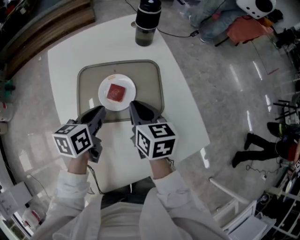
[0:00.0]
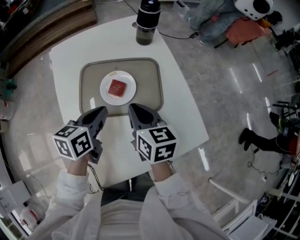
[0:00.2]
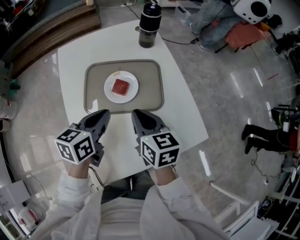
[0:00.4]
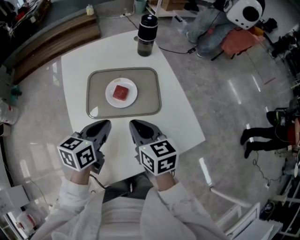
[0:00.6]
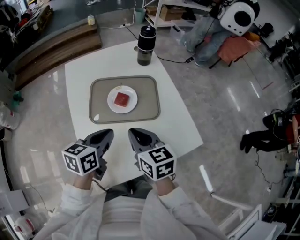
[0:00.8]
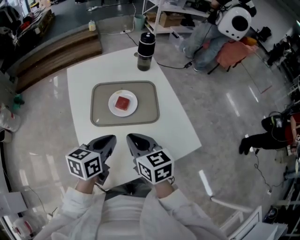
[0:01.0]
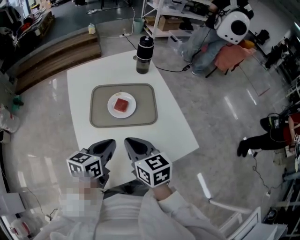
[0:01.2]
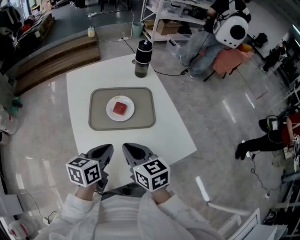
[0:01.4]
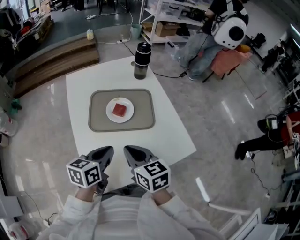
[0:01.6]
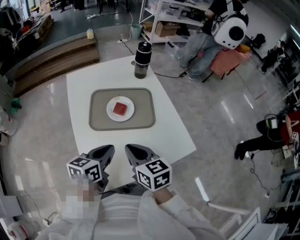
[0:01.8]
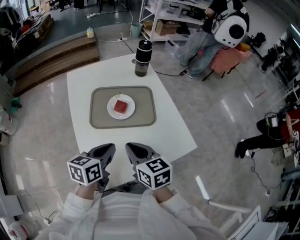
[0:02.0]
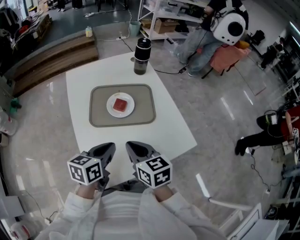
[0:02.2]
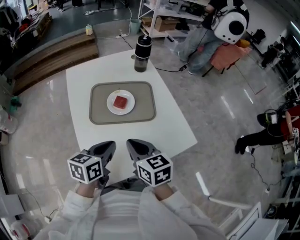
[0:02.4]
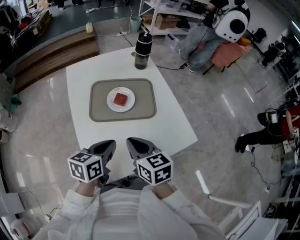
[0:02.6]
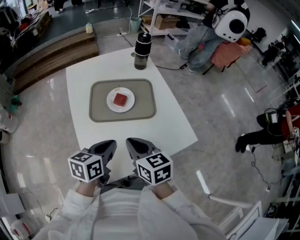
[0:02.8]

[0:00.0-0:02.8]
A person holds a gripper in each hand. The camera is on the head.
0:00.0 to 0:01.4: The right gripper travels backward and upward by approximately 20 cm. The left gripper shifts roughly 15 cm backward.
0:01.4 to 0:02.8: The grippers move only a little.

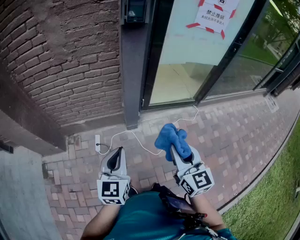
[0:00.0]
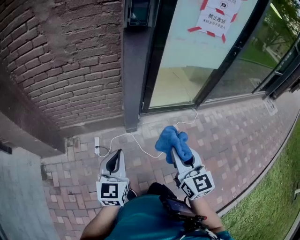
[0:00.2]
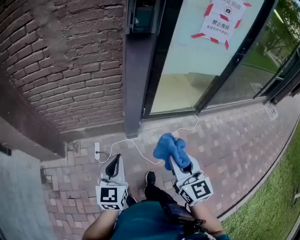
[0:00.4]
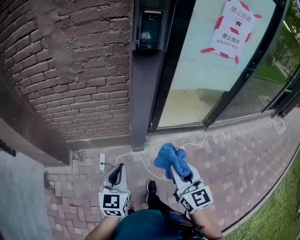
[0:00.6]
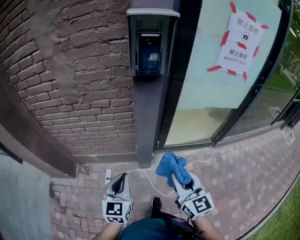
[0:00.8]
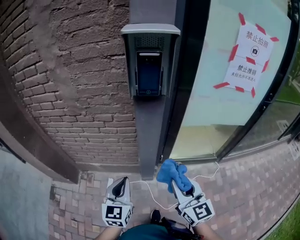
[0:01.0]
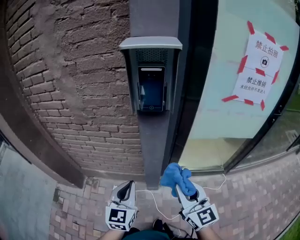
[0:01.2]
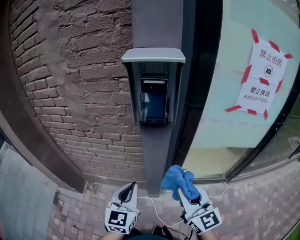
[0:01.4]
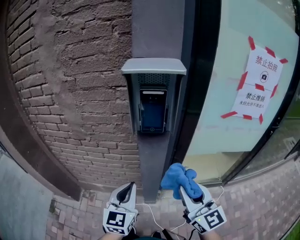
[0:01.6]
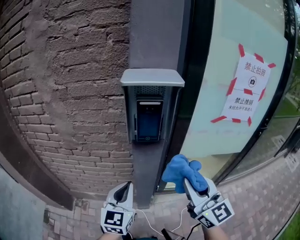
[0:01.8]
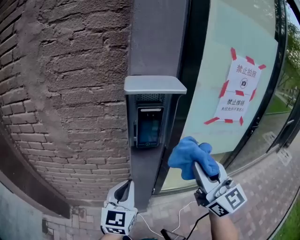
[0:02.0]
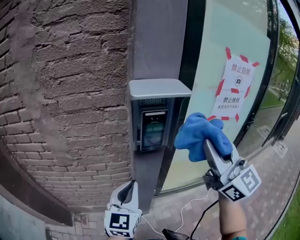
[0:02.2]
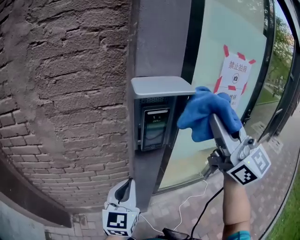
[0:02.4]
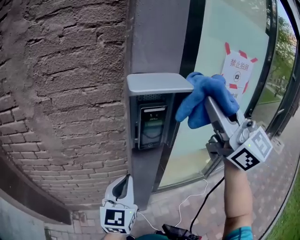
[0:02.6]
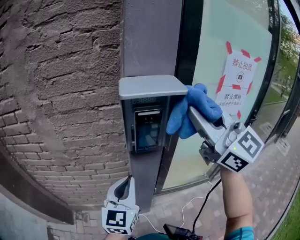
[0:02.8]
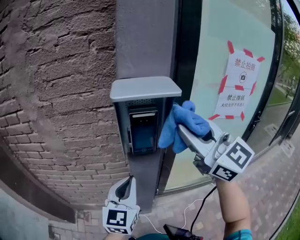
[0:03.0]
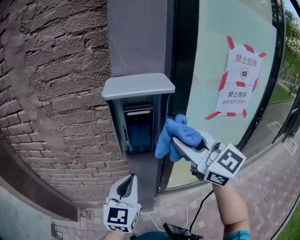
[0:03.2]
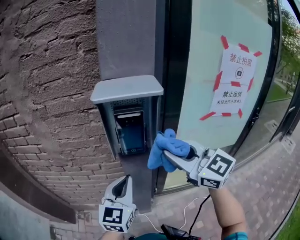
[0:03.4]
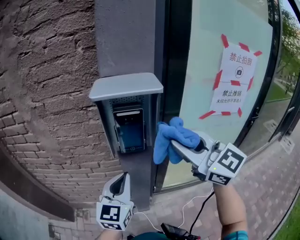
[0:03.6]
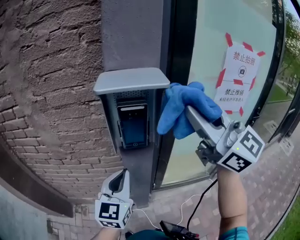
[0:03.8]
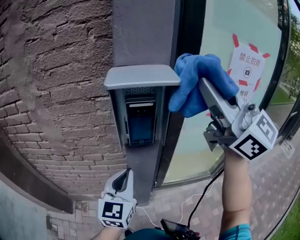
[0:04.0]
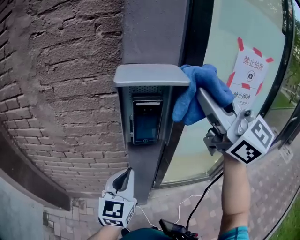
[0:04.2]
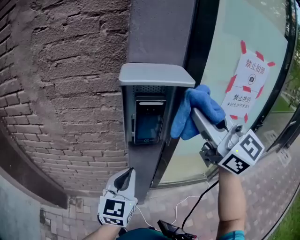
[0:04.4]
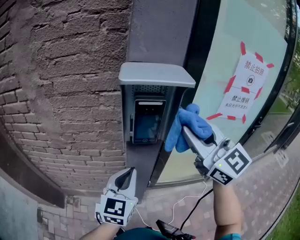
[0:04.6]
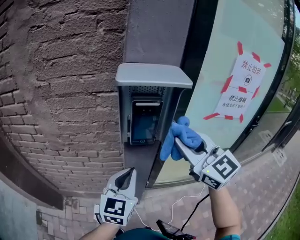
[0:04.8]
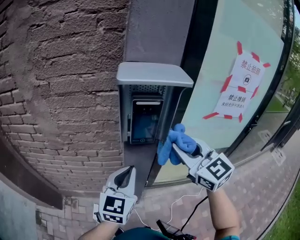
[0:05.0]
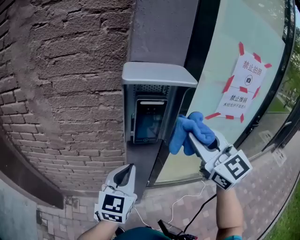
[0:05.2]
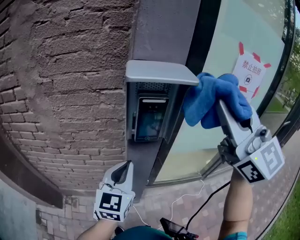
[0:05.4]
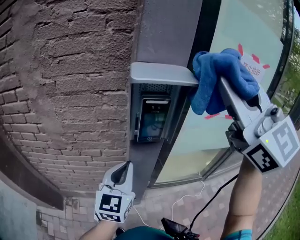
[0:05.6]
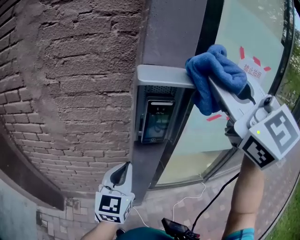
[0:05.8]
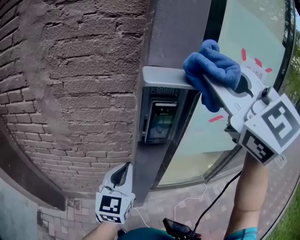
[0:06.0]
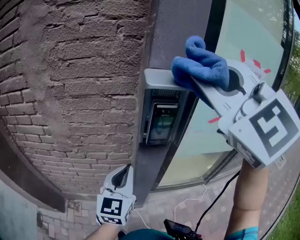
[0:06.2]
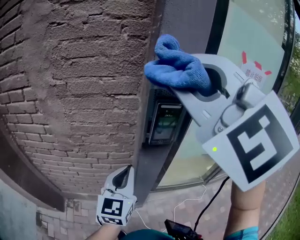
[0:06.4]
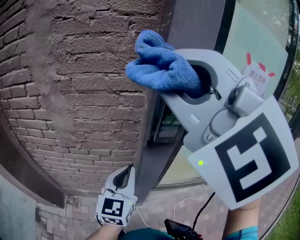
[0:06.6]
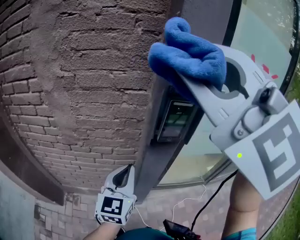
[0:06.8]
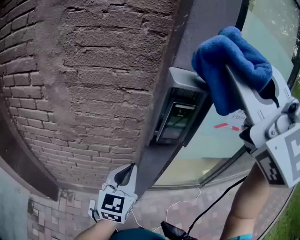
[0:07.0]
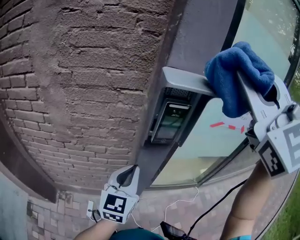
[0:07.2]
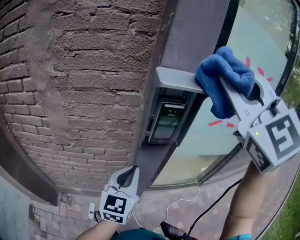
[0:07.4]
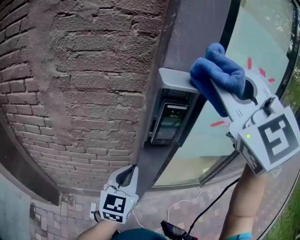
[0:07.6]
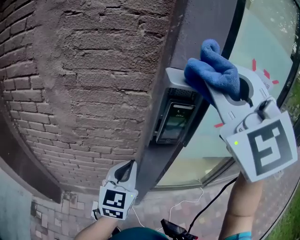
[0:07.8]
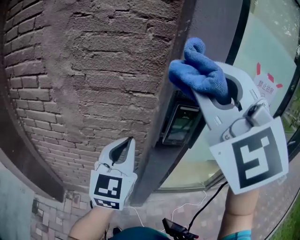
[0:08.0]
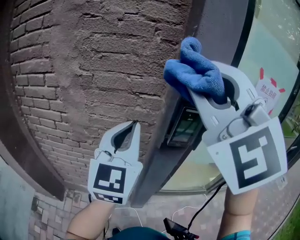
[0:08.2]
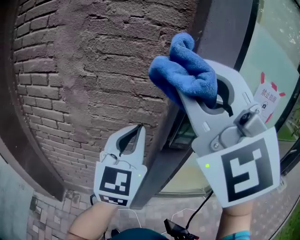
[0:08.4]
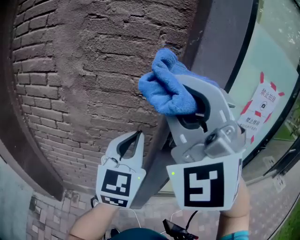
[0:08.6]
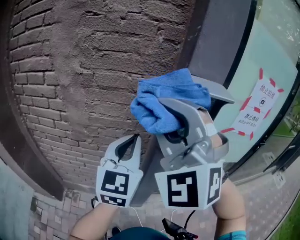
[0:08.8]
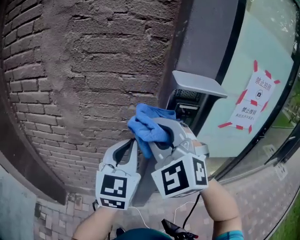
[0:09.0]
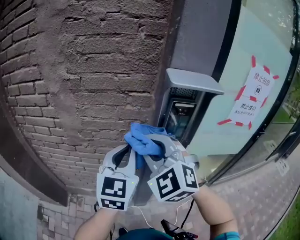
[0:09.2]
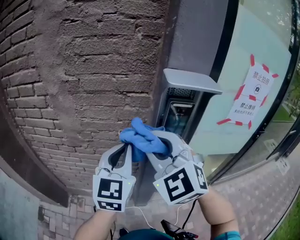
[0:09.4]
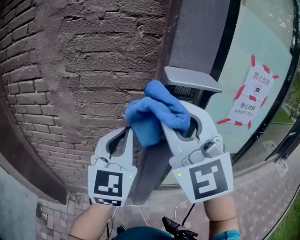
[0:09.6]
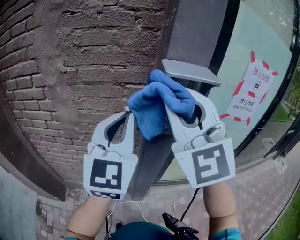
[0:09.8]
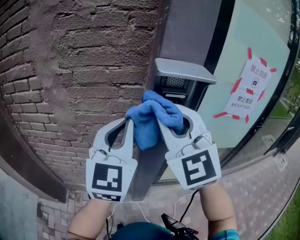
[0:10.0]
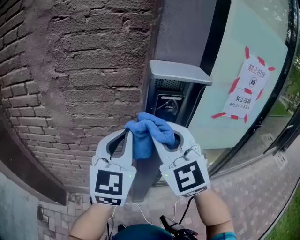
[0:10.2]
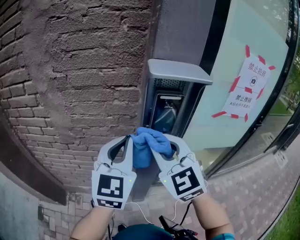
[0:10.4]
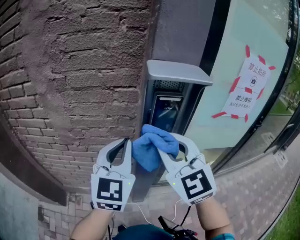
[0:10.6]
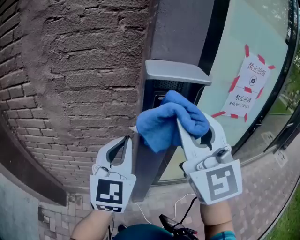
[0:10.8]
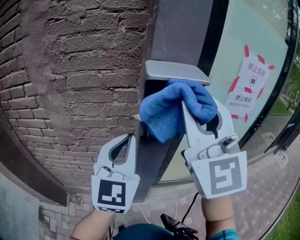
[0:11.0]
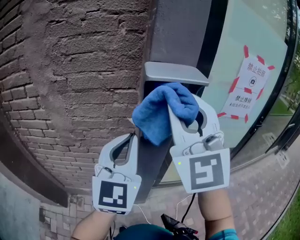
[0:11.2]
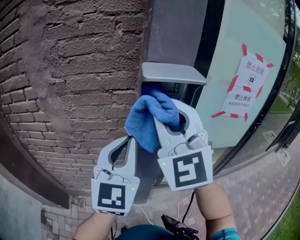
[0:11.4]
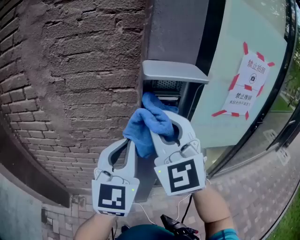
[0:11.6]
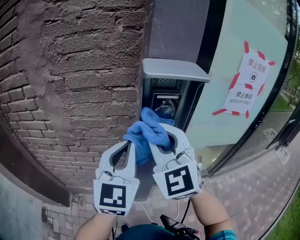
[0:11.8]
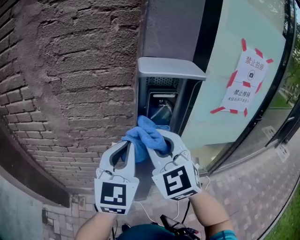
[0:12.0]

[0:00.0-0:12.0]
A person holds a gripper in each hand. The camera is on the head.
0:00.0 to 0:01.6: The grippers both shift forward by some 30 cm. The right gripper rotates roughly 20 degrees.
0:01.6 to 0:03.0: The right gripper travels upward and forward by roughly 25 cm; the left gripper is displaced upward and forward by roughly 10 cm.
0:03.0 to 0:04.4: The right gripper swings up and down, approximately 20 cm each way, with 2 reversals.
0:04.4 to 0:06.0: The left gripper moves about 5 cm; the right gripper heads upward and to the left, covering approximately 15 cm, and changes its angle by roughly 40 degrees.
0:06.0 to 0:07.6: The right gripper travels to the left and back again, about 15 cm each way.
0:07.6 to 0:09.0: The right gripper moves downward and to the left, about 20 cm; the left gripper shifts approximately 10 cm upward and to the left.
0:09.0 to 0:10.4: The left gripper reaches some 10 cm upward, then returns. The right gripper moves up and down over about 15 cm, changing direction 2 times, and turns by about 20 degrees.
0:10.4 to 0:12.0: The right gripper reaches some 20 cm upward, then returns.

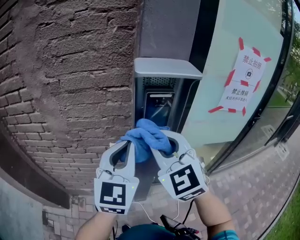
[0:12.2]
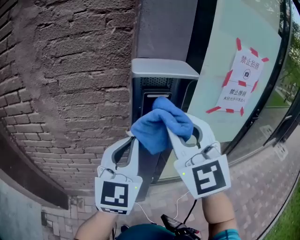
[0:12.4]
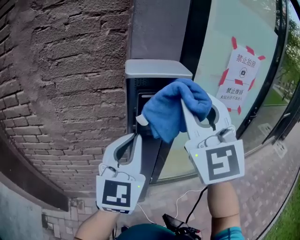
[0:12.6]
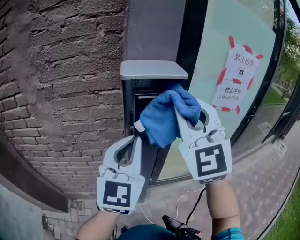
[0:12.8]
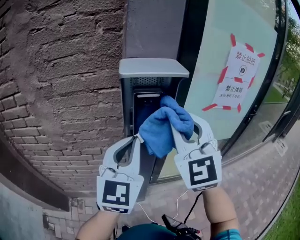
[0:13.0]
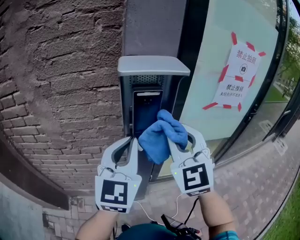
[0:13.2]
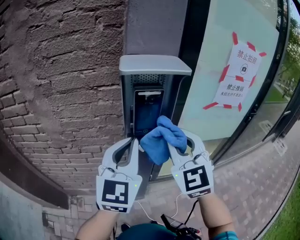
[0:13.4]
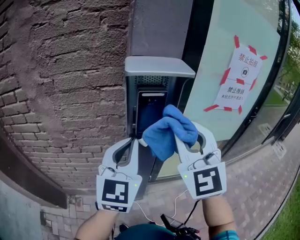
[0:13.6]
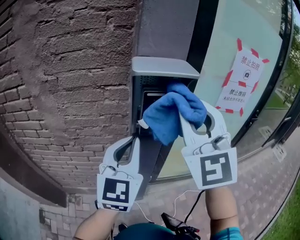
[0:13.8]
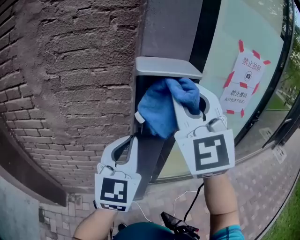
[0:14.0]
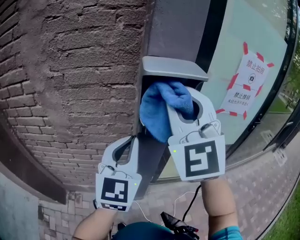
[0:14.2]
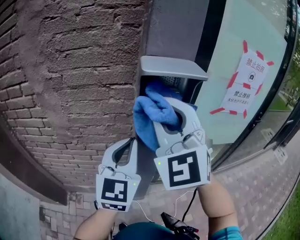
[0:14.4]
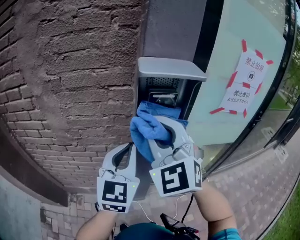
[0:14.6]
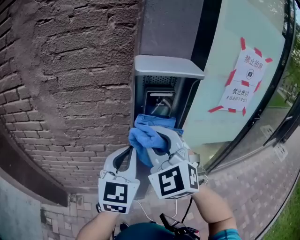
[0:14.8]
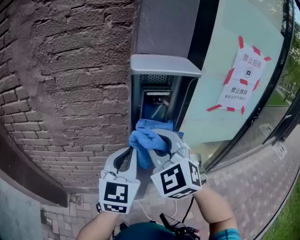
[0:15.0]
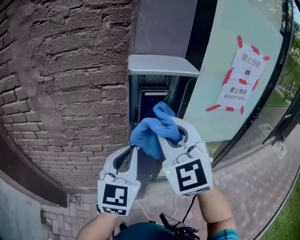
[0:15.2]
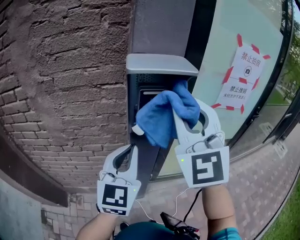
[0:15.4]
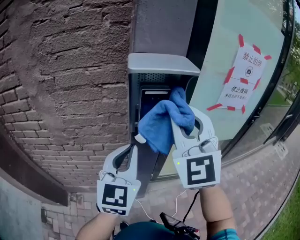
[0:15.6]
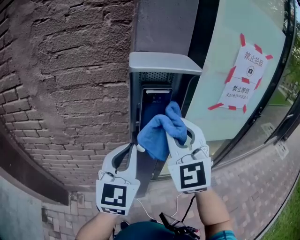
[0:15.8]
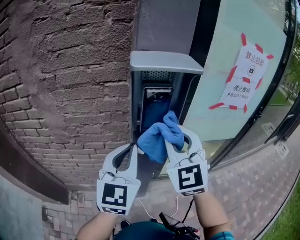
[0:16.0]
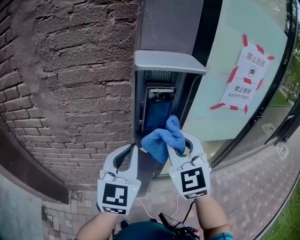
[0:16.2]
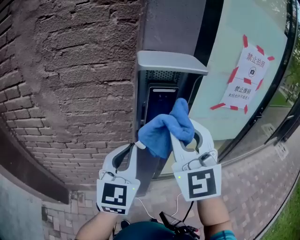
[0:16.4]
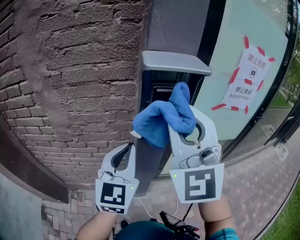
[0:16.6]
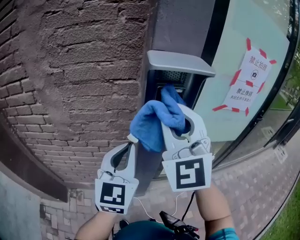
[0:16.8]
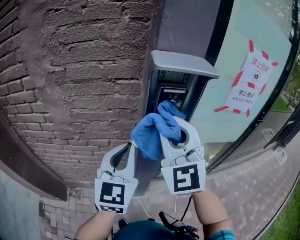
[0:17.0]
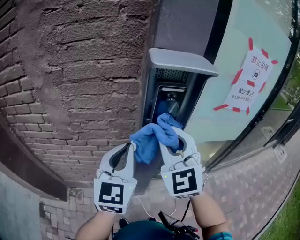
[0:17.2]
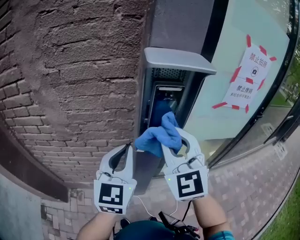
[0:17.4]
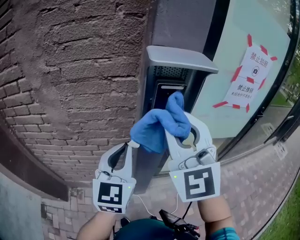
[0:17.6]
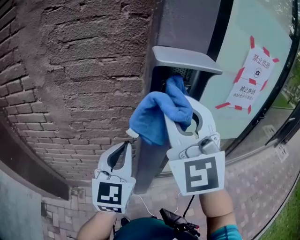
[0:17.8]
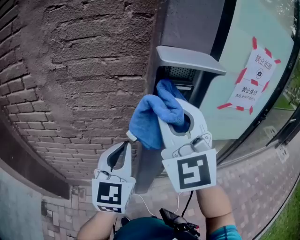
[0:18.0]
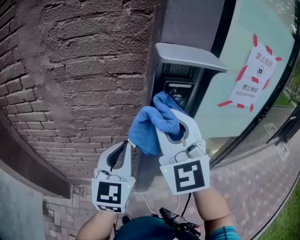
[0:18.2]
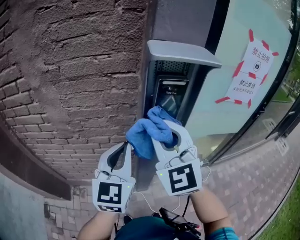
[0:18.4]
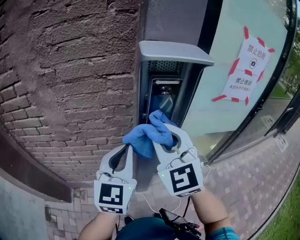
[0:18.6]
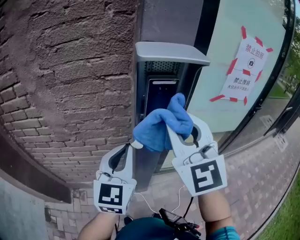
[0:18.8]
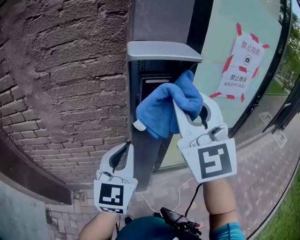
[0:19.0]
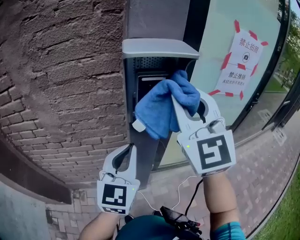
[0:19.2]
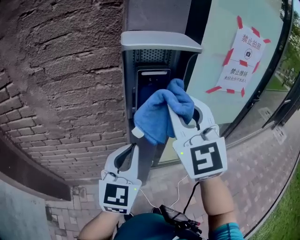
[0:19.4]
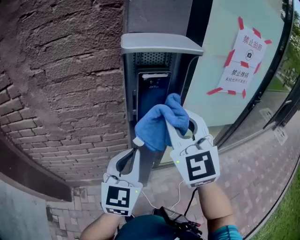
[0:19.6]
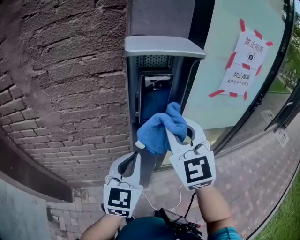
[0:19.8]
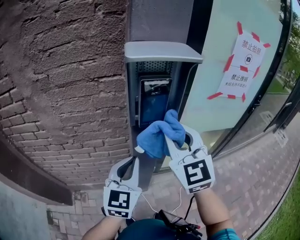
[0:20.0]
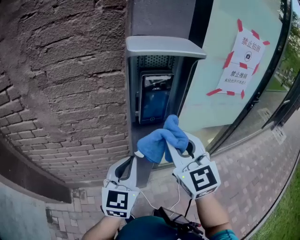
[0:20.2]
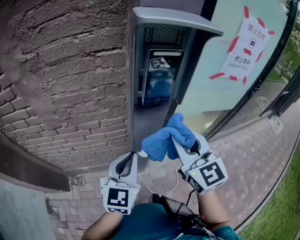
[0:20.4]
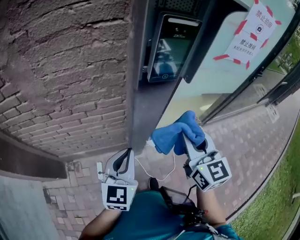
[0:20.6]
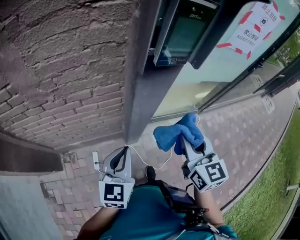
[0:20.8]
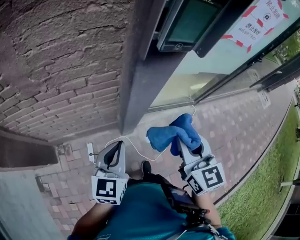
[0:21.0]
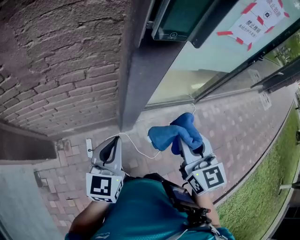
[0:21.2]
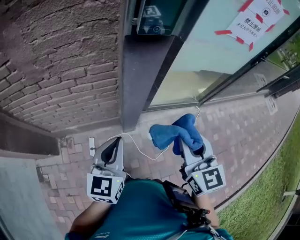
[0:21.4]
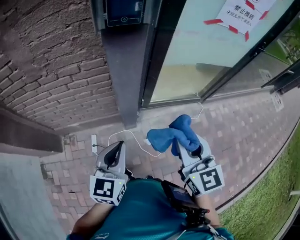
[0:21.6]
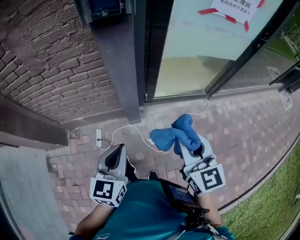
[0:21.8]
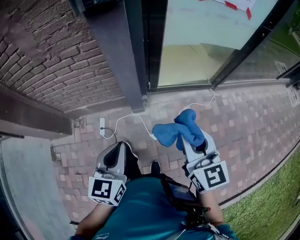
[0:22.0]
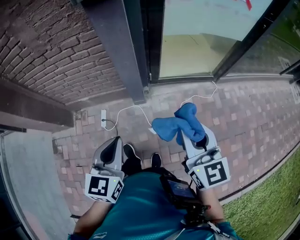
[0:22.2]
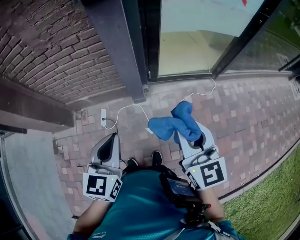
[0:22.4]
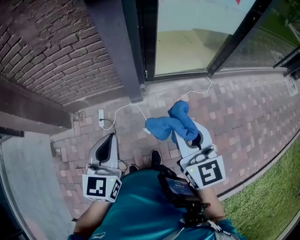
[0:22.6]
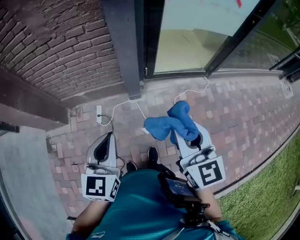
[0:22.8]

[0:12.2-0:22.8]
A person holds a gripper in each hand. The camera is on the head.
0:12.2 to 0:13.8: The right gripper swings up and down, approximately 15 cm each way, with 2 reversals, and swivels about 20 degrees.
0:13.8 to 0:15.2: The right gripper moves downward, about 5 cm.
0:15.2 to 0:16.8: The right gripper moves up and down over some 15 cm, changing direction 2 times.
0:16.8 to 0:18.2: The right gripper goes up and down, roughly 10 cm each way, reversing 2 times.
0:18.2 to 0:19.8: The left gripper heads to the right and downward, covering approximately 10 cm, while the right gripper swings up and down, about 10 cm each way, with 2 reversals.
0:19.8 to 0:21.2: The two grippers go about 20 cm downward and backward. The right gripper changes its angle by some 30 degrees.
0:21.2 to 0:22.8: The grippers both shift backward by about 25 cm.
